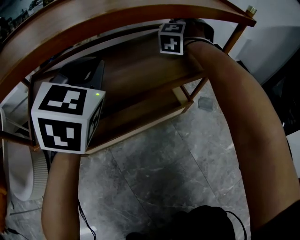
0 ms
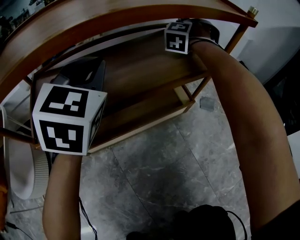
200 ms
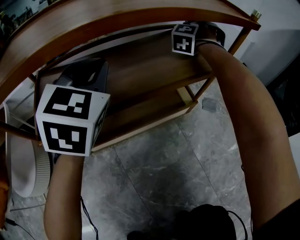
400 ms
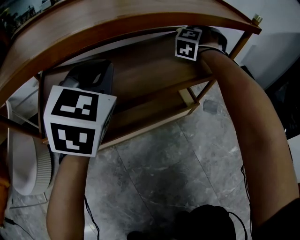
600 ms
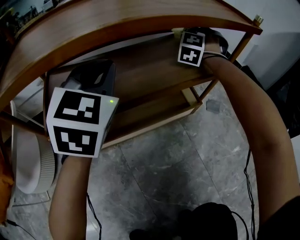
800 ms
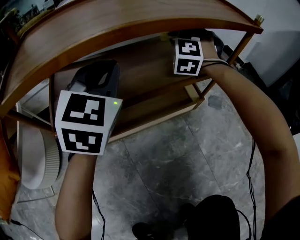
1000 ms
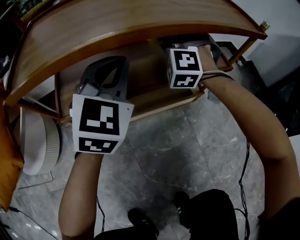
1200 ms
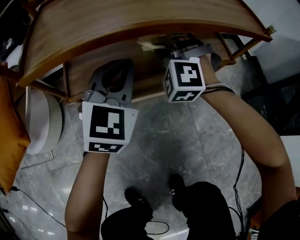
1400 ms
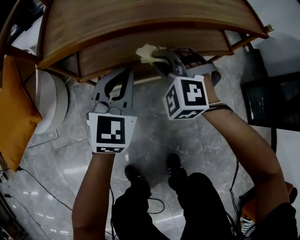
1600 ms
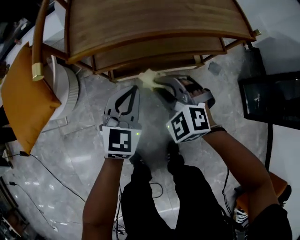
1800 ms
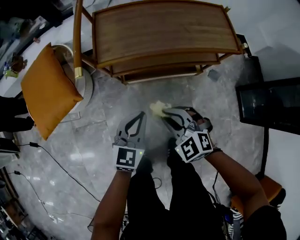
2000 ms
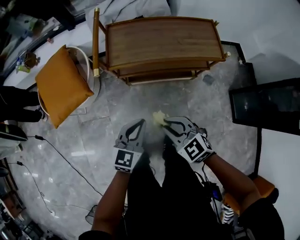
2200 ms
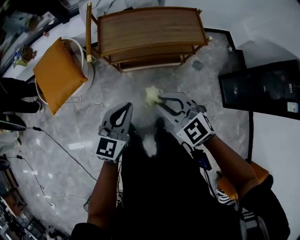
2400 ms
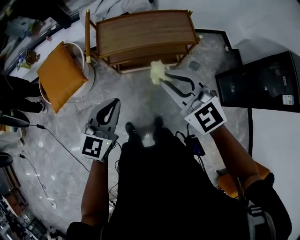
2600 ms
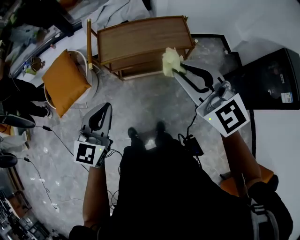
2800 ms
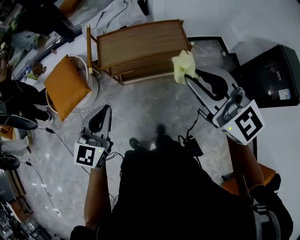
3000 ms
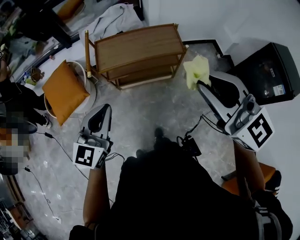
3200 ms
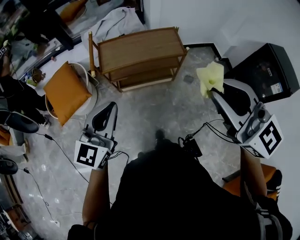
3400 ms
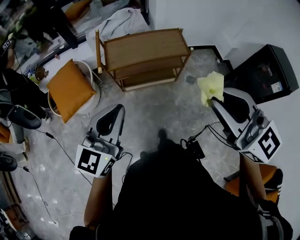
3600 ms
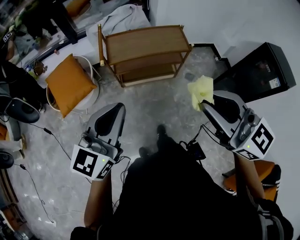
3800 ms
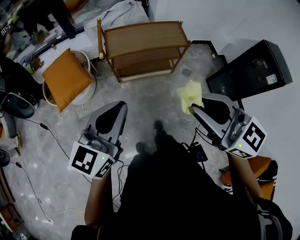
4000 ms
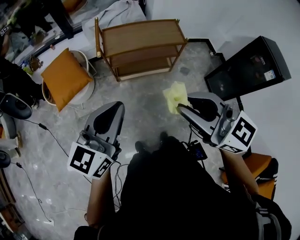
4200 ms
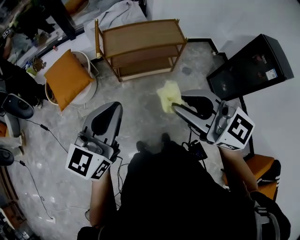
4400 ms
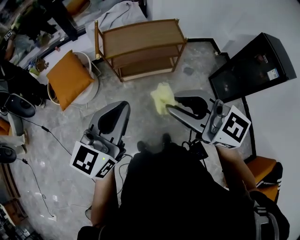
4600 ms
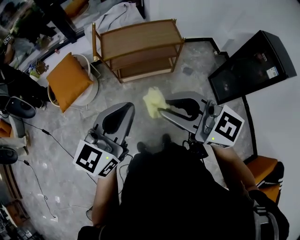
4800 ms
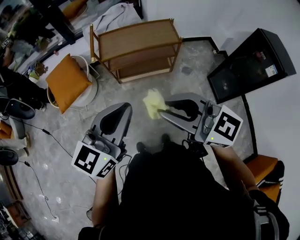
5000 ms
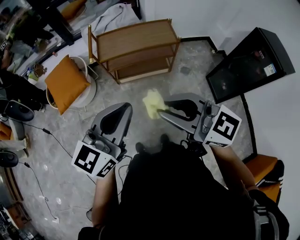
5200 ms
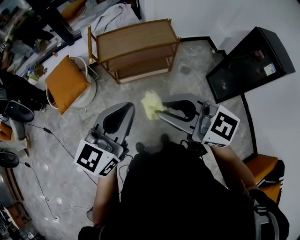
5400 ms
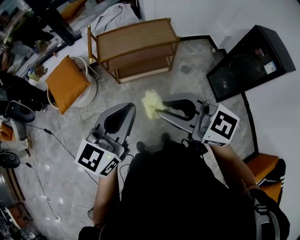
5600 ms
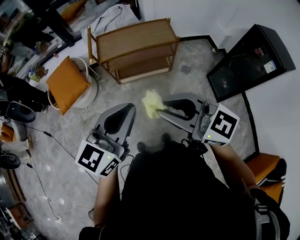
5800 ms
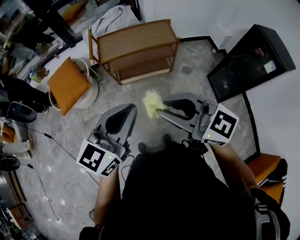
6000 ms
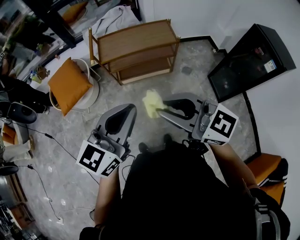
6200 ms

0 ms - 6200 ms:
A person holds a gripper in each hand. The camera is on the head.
0 ms - 1600 ms: The right gripper moves roughly 40 cm, and swivels roughly 40 degrees. Meanwhile the left gripper moves some 15 cm.
1600 ms - 3200 ms: Both grippers move upward and backward, approximately 70 cm. The right gripper tilts its fingers about 40 degrees upward.
3200 ms - 4600 ms: The left gripper is displaced backward and upward by some 15 cm, while the right gripper goes about 20 cm to the left and backward.
4600 ms - 6200 ms: The left gripper heads to the right, covering some 5 cm.

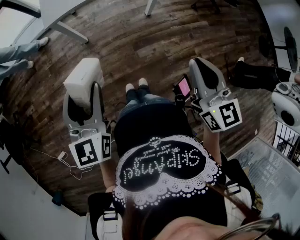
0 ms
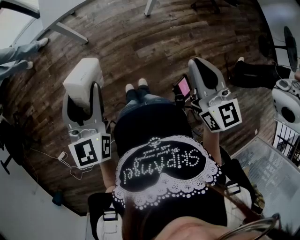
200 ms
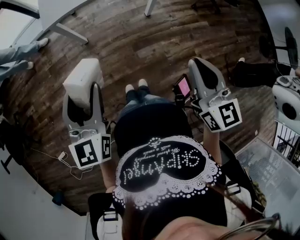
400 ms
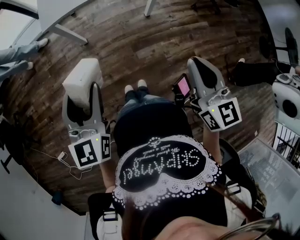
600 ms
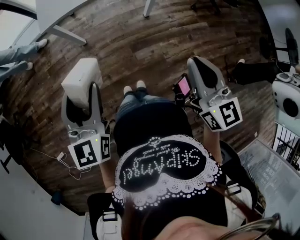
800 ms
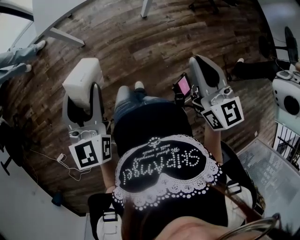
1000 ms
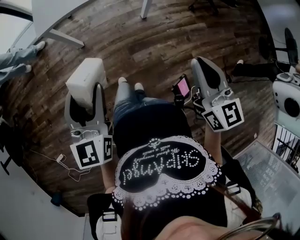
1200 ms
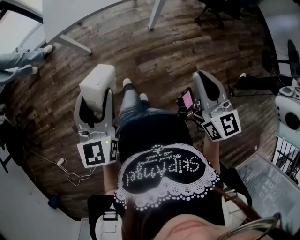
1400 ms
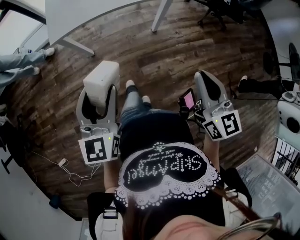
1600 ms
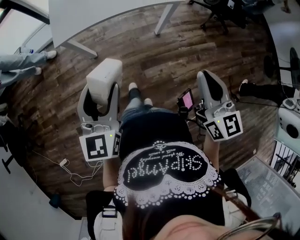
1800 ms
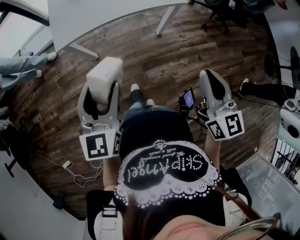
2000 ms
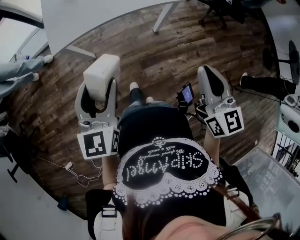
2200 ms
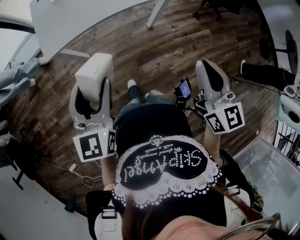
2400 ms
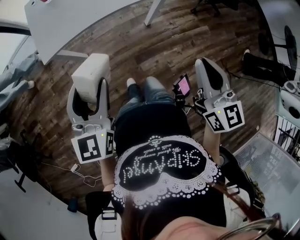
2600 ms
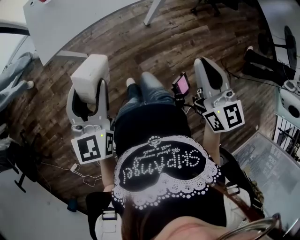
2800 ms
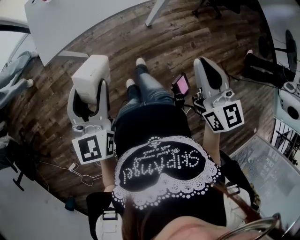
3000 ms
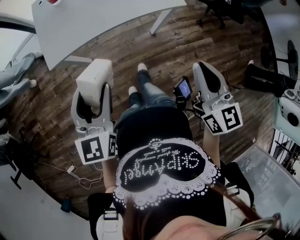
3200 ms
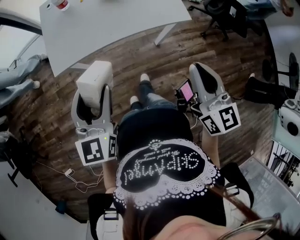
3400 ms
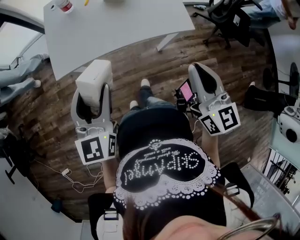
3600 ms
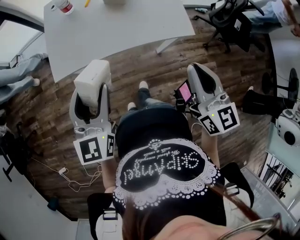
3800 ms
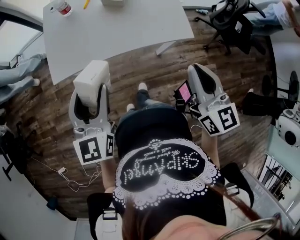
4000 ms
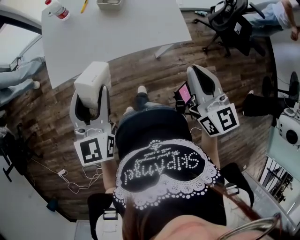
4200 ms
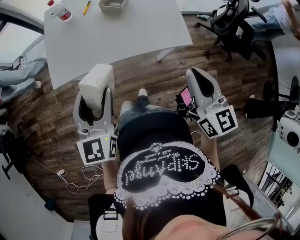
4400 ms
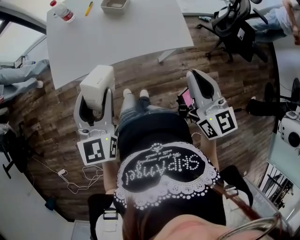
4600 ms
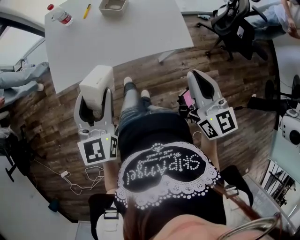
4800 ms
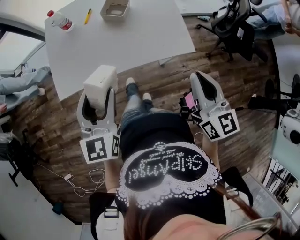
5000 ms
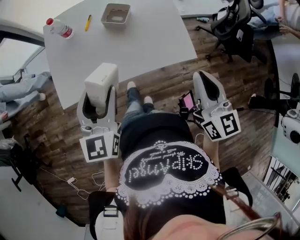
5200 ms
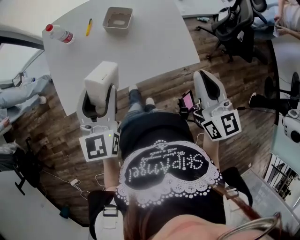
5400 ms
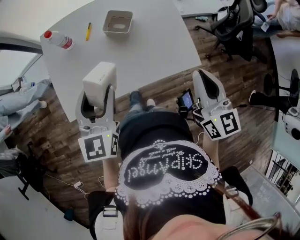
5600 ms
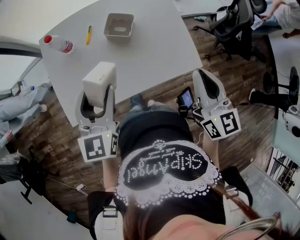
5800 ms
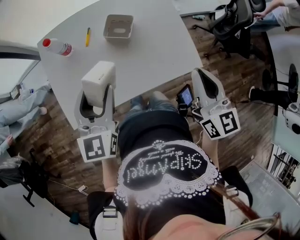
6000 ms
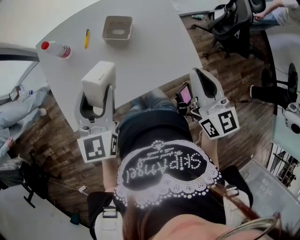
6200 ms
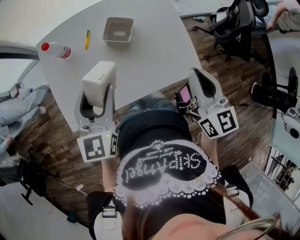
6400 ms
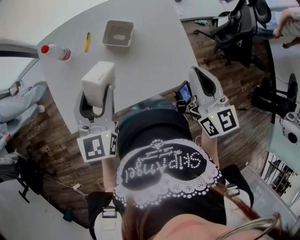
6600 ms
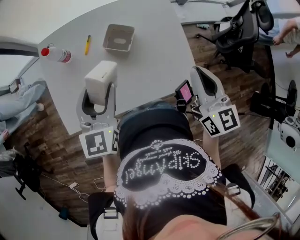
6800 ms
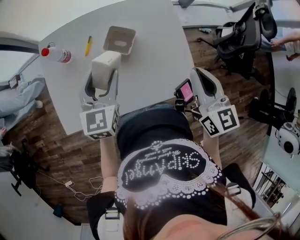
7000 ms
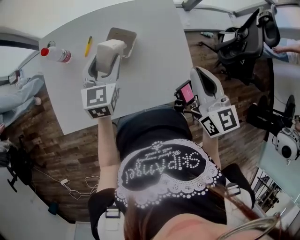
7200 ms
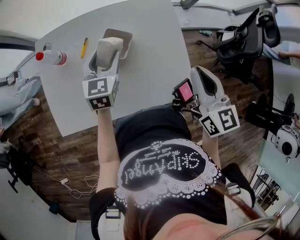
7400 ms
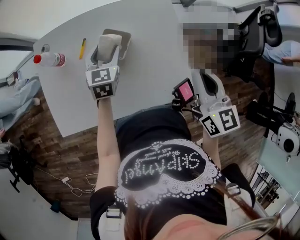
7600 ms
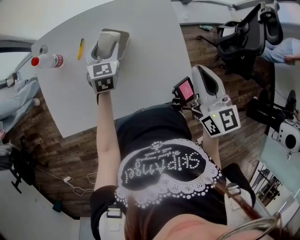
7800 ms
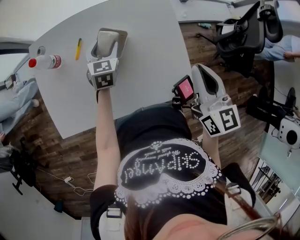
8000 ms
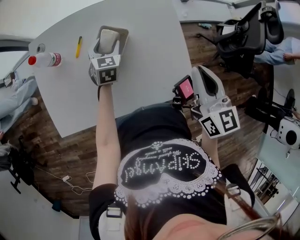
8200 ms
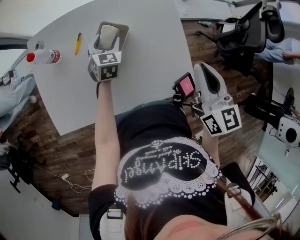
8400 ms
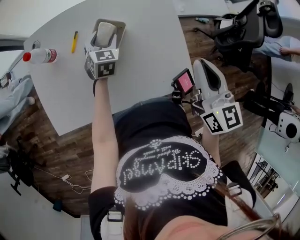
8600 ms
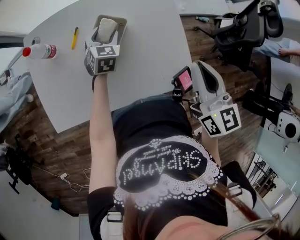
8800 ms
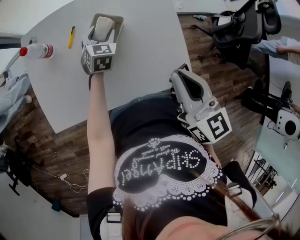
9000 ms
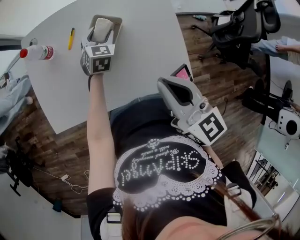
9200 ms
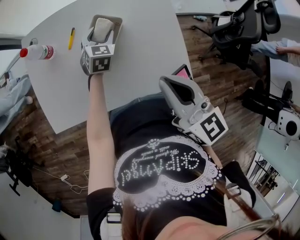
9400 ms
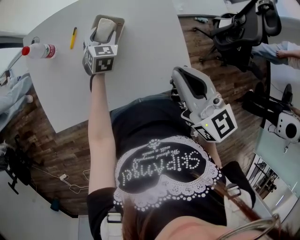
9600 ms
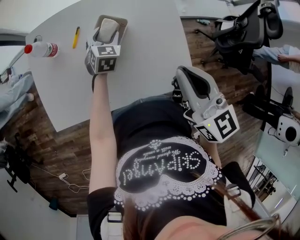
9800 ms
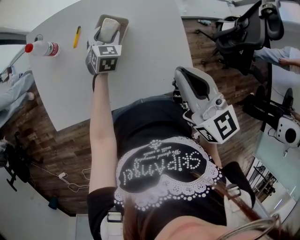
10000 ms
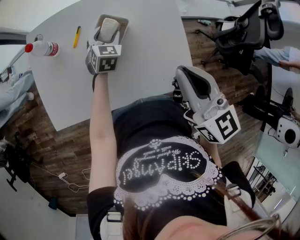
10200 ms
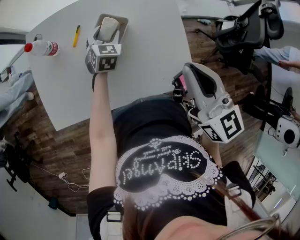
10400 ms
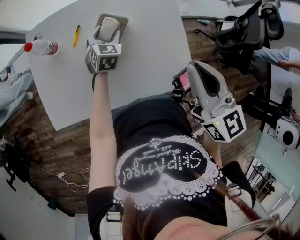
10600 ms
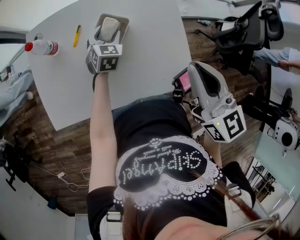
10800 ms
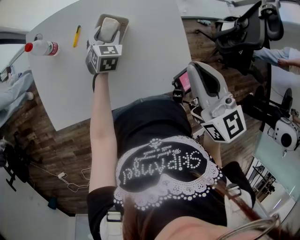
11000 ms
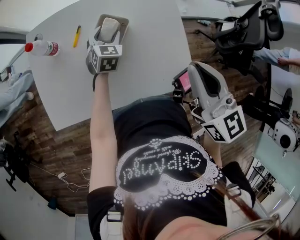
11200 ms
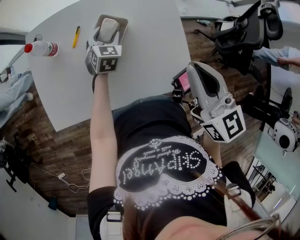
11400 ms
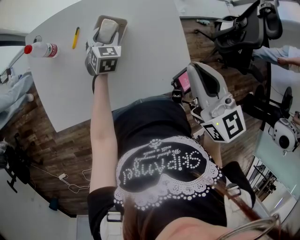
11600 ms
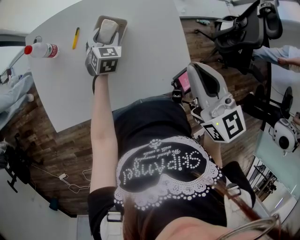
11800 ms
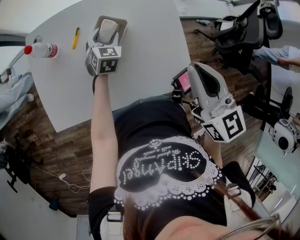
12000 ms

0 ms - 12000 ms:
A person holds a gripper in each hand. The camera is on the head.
0 ms - 1600 ms: The grippers both shift forward and to the right by approximately 10 cm.
1600 ms - 3000 ms: The grippers both shift forward by roughly 15 cm.
3000 ms - 4400 ms: The left gripper moves forward and to the right, about 15 cm; the right gripper shifts roughly 20 cm forward.
4400 ms - 6000 ms: Both grippers travel together forward, approximately 20 cm.
6000 ms - 7600 ms: The left gripper goes about 25 cm forward and downward, while the right gripper heads forward and to the right, covering approximately 15 cm.
7600 ms - 9000 ms: The right gripper goes approximately 10 cm to the left and backward. Meanwhile the left gripper moves downward, roughly 10 cm.
9000 ms - 12000 ms: There are only small adjustments of the grippers.

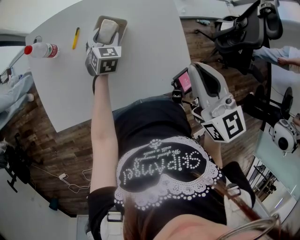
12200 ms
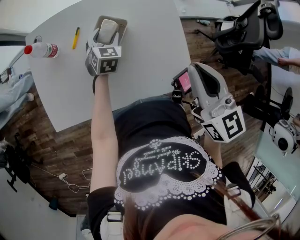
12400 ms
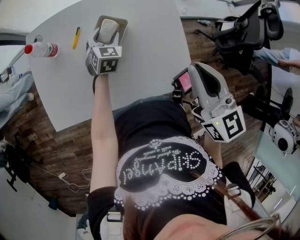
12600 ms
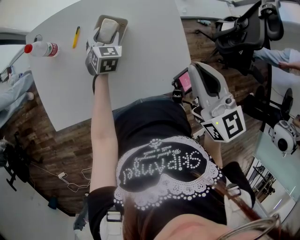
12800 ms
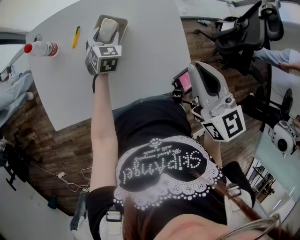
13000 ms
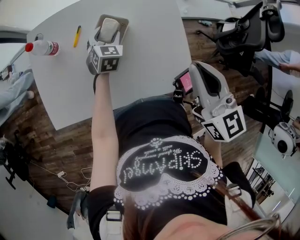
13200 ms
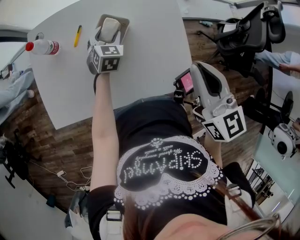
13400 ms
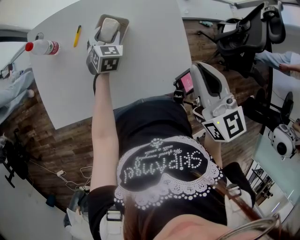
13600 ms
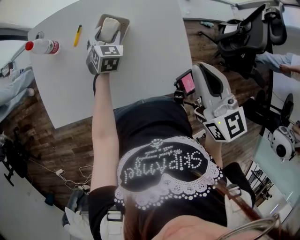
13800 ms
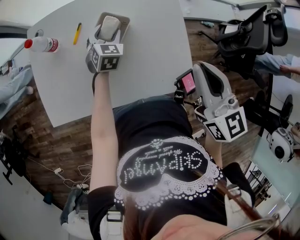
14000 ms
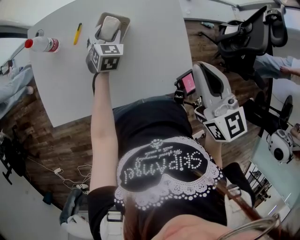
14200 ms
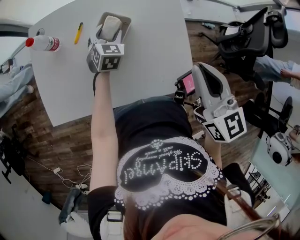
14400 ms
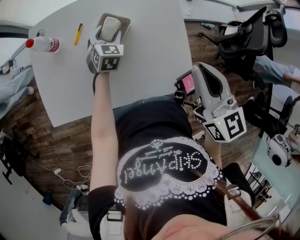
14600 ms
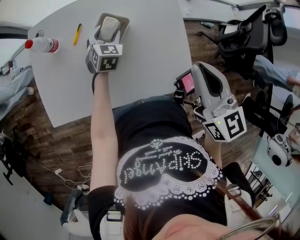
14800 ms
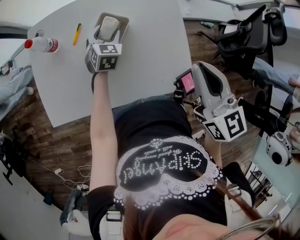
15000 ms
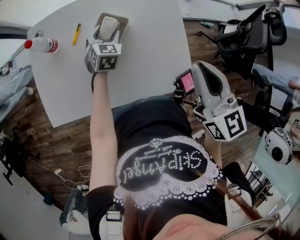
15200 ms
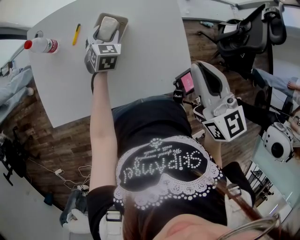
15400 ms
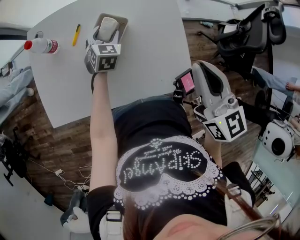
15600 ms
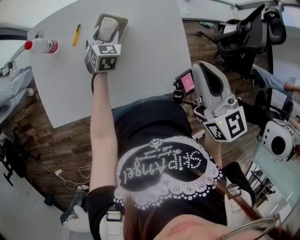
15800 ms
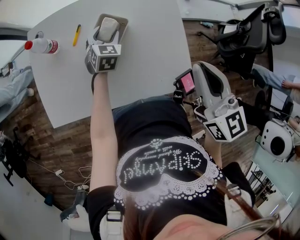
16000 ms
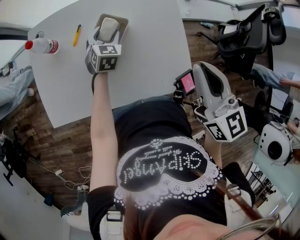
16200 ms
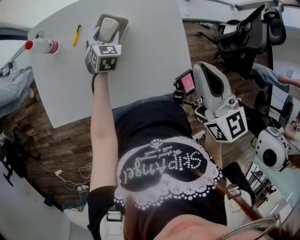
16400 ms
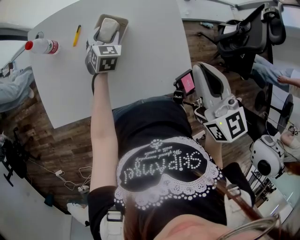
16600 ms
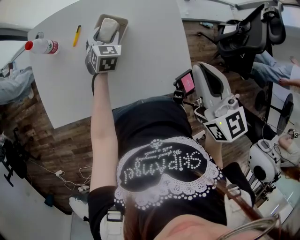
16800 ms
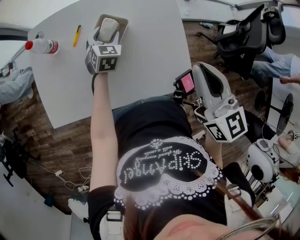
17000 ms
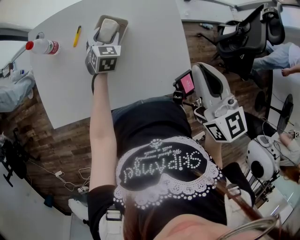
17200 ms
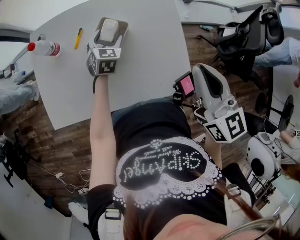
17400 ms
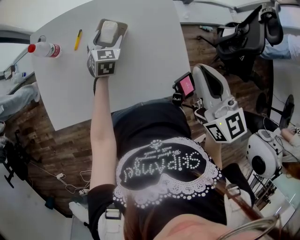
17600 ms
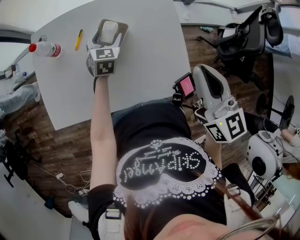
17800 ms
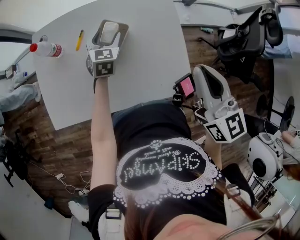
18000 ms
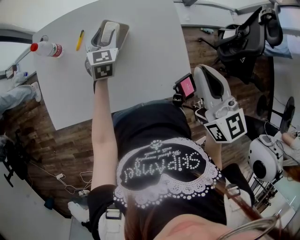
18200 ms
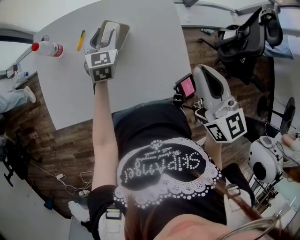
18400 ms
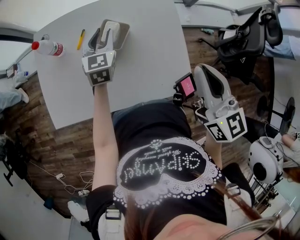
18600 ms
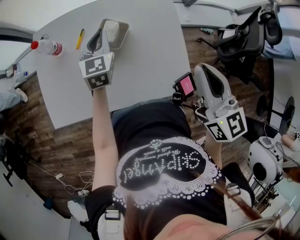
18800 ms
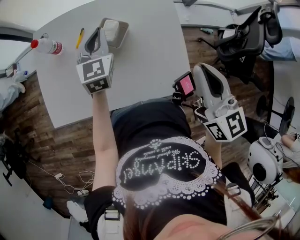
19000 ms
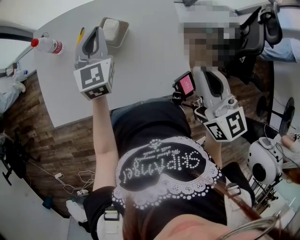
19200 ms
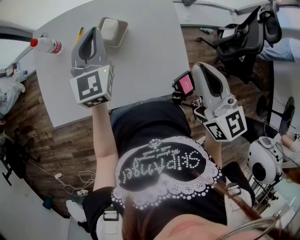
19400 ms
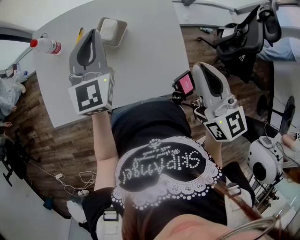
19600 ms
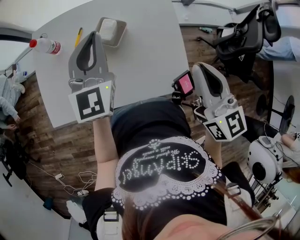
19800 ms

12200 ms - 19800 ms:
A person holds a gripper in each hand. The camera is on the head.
12200 ms - 13800 ms: The grippers stay close to where they were, moving slightly.
13800 ms - 16800 ms: Both grippers stay put.
16800 ms - 18200 ms: The left gripper heads upward, covering roughly 5 cm.
18200 ms - 19800 ms: The left gripper goes about 20 cm upward and backward, rotates roughly 20 degrees, and closes its fingers.
